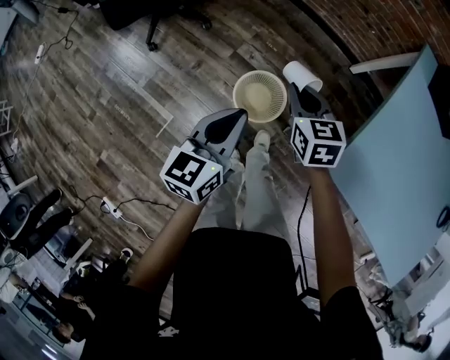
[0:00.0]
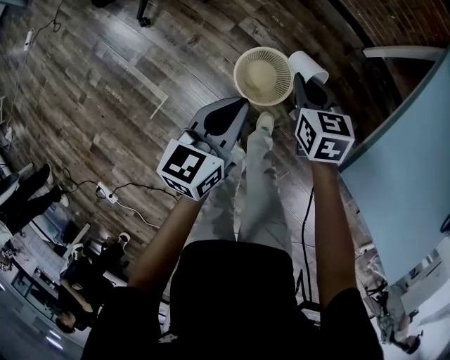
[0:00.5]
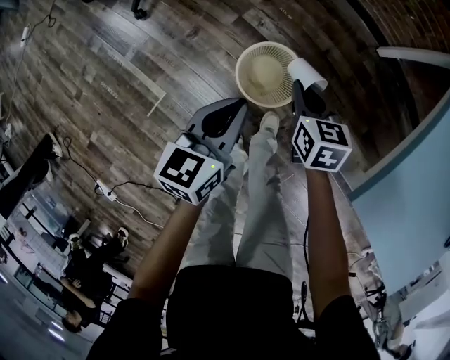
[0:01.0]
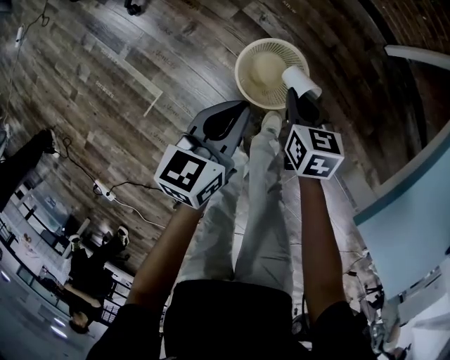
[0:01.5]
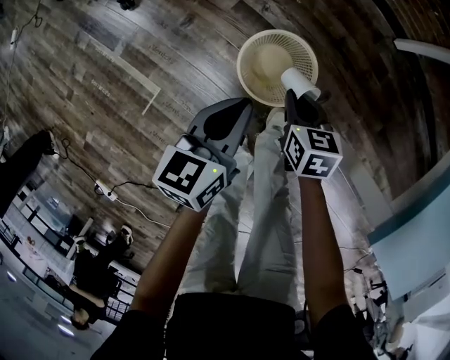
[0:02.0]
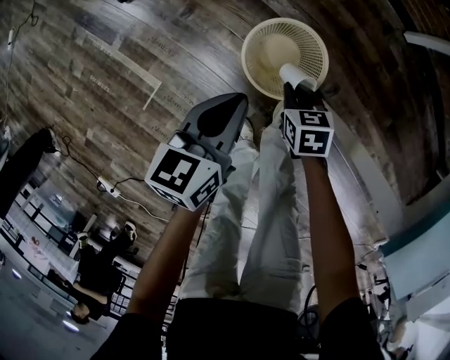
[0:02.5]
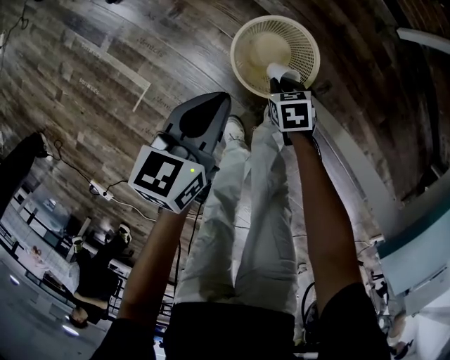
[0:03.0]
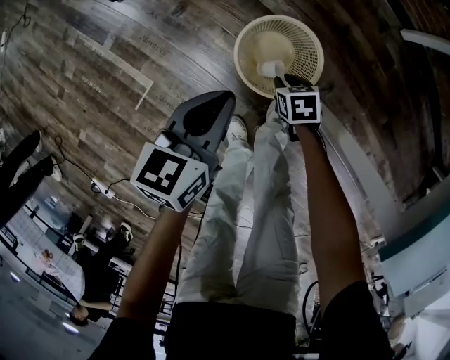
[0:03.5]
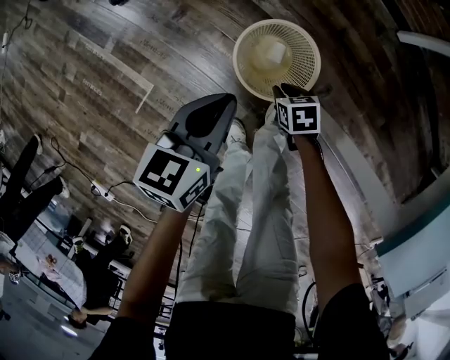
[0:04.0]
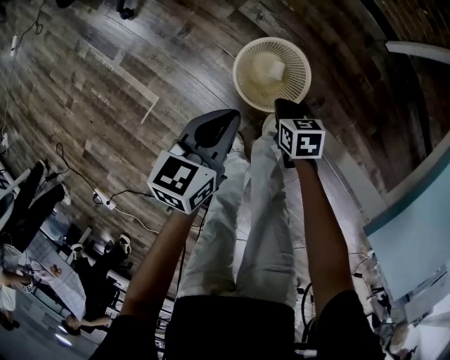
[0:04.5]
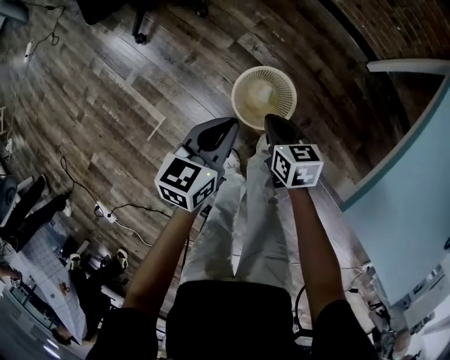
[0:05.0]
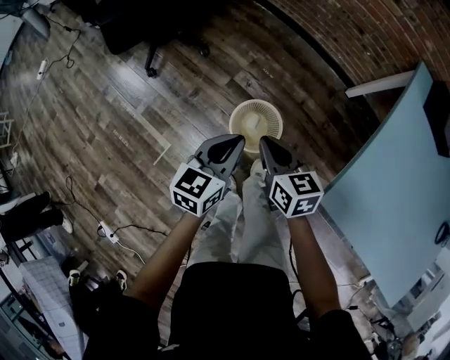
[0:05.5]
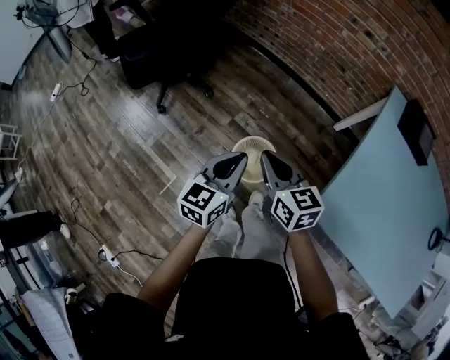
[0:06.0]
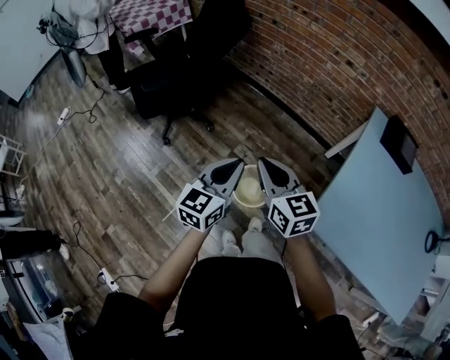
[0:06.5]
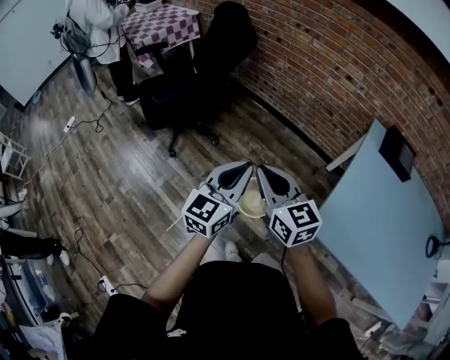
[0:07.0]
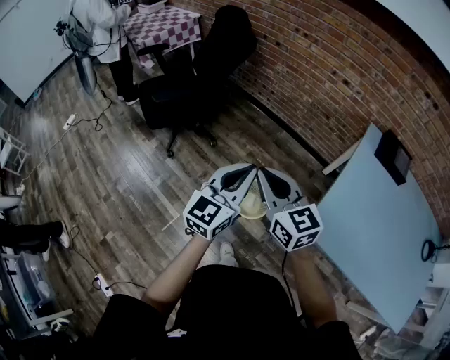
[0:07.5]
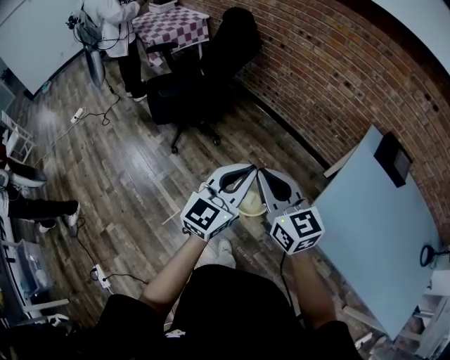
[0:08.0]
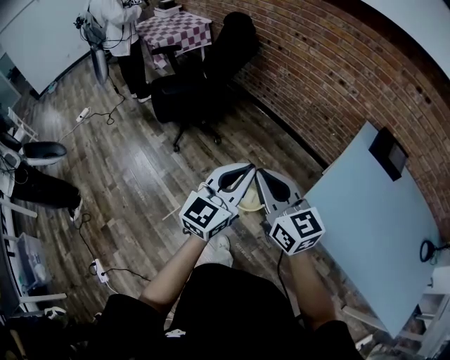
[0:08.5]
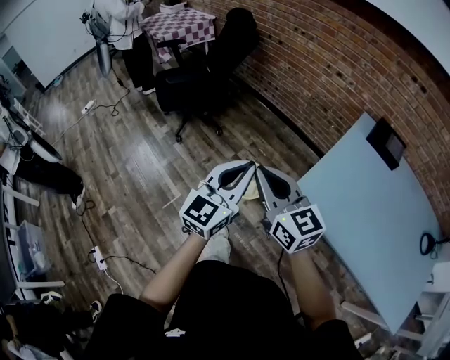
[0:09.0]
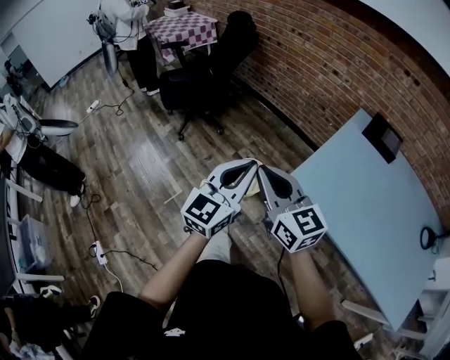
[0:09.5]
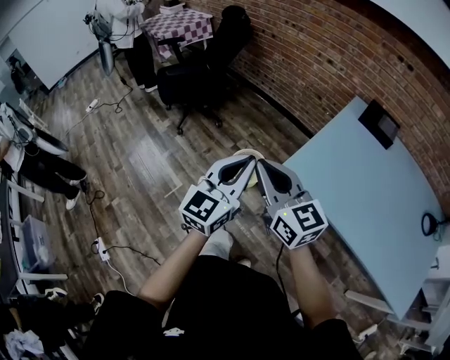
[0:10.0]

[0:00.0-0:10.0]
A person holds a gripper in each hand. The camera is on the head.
0:00.0 to 0:02.0: The two grippers go roughly 30 cm downward.
0:02.0 to 0:04.0: The right gripper heads downward, covering approximately 15 cm, and rotates roughly 20 degrees.
0:04.0 to 0:06.0: The right gripper heads upward, covering roughly 60 cm, and angles its fingers upward, by about 40 degrees. The left gripper heads upward, covering some 35 cm, and turns by about 20 degrees.
0:06.0 to 0:08.0: Both grippers travel together upward and backward, some 25 cm. The right gripper rotates roughly 20 degrees, while the left gripper rotates some 30 degrees.
0:08.0 to 0:10.0: The two grippers go about 25 cm backward.

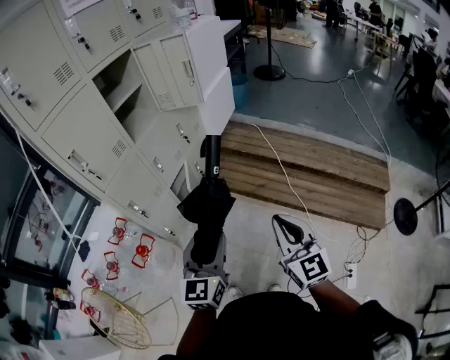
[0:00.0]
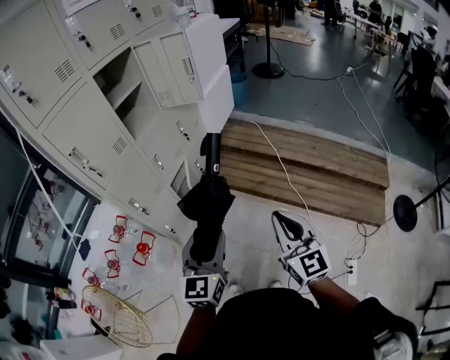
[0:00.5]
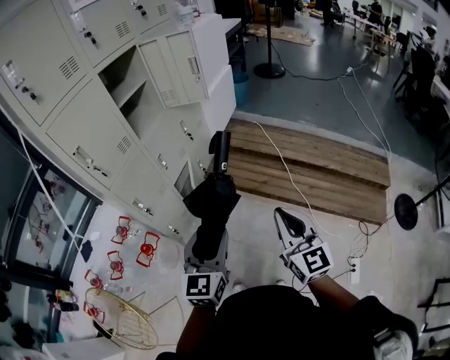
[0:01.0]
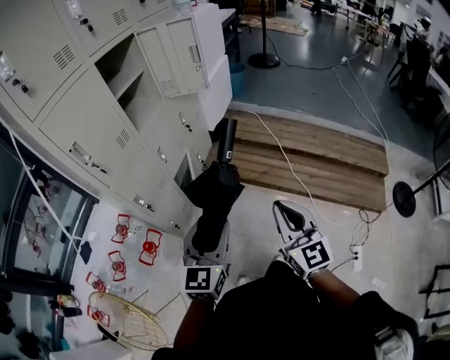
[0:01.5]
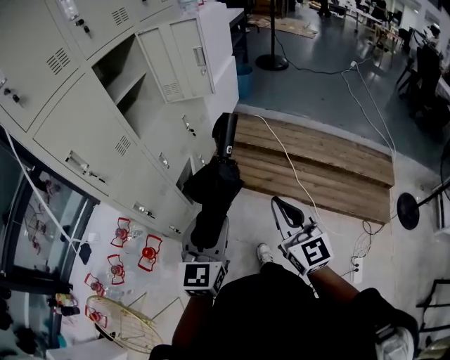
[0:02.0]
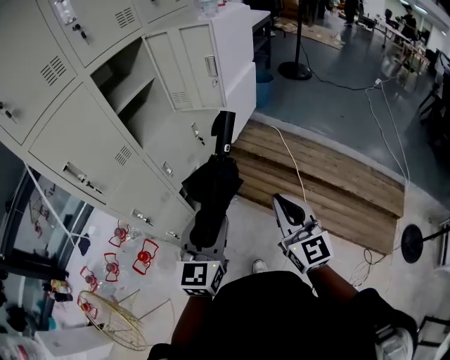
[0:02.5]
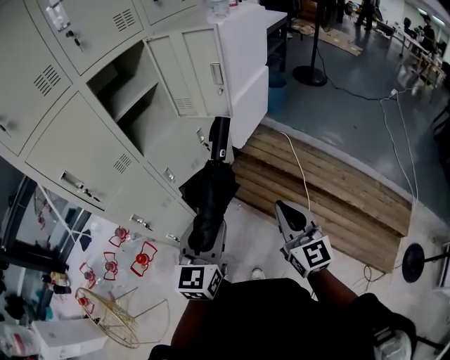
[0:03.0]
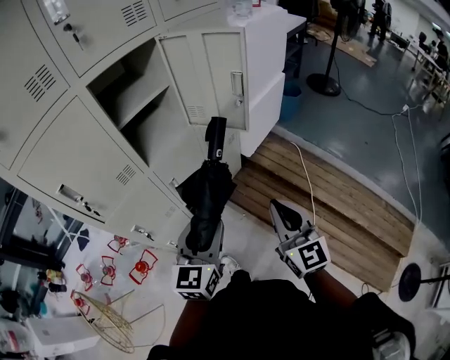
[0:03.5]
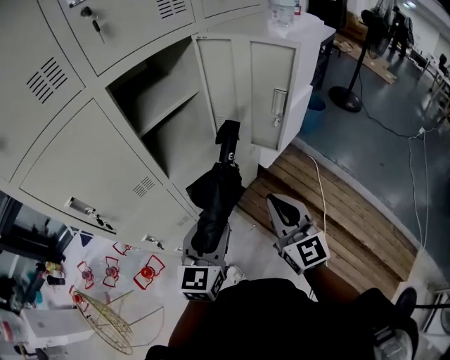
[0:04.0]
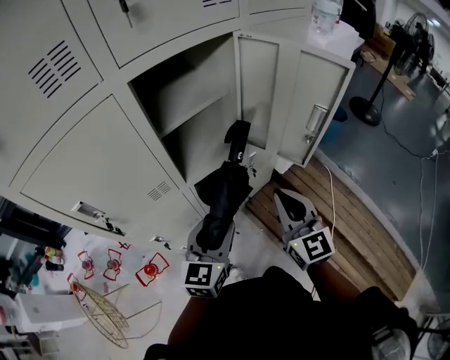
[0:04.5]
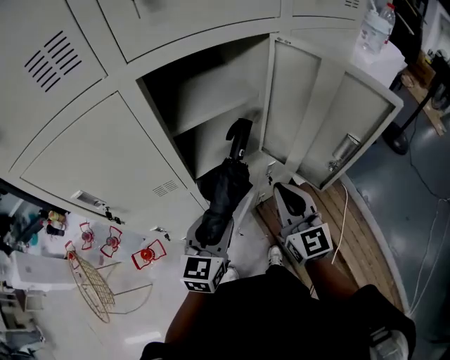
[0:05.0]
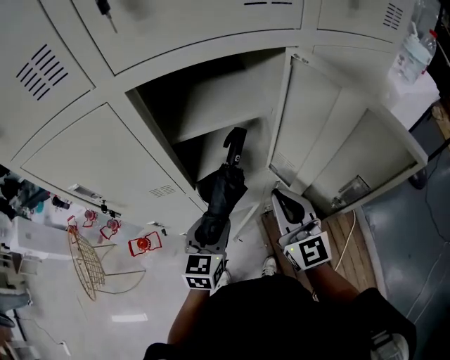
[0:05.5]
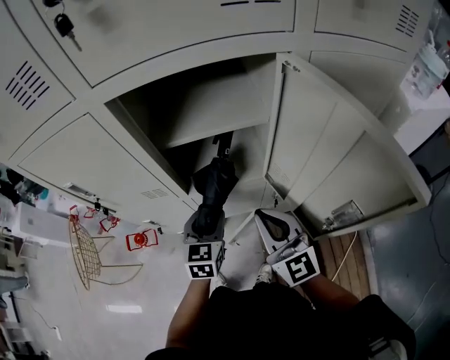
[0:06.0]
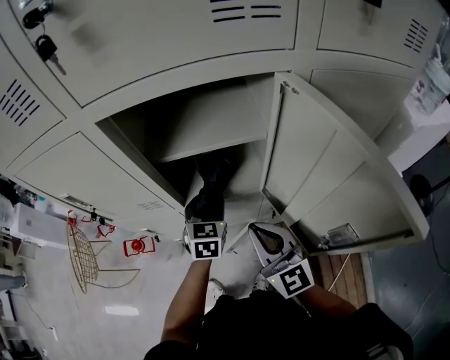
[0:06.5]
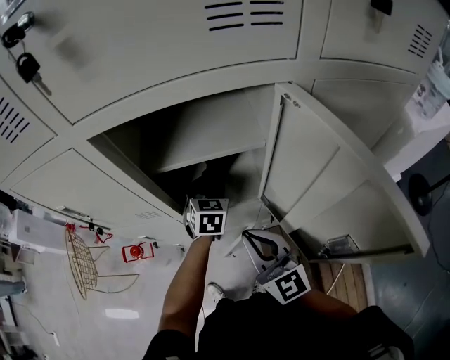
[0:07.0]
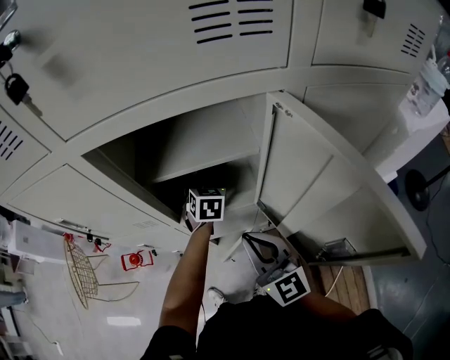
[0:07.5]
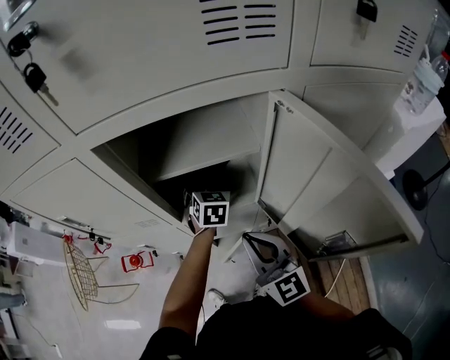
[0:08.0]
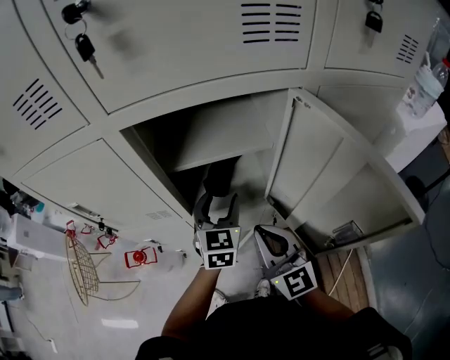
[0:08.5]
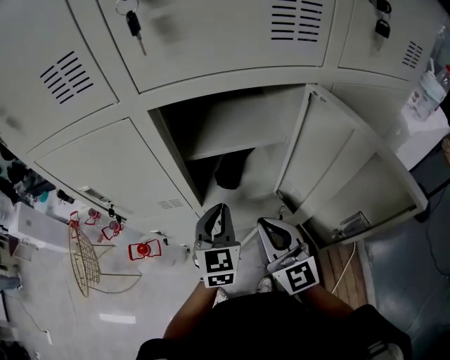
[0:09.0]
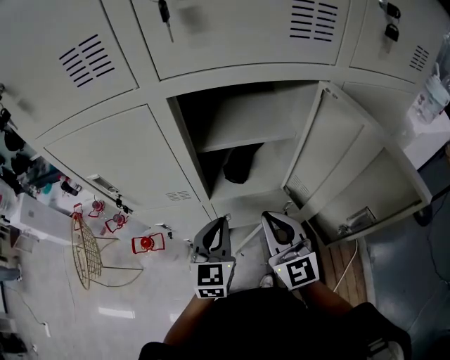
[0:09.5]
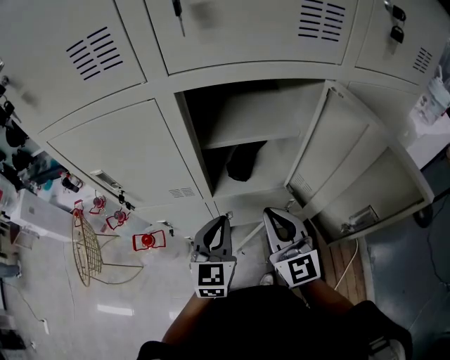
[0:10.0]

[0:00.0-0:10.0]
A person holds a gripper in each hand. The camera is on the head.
0:00.0 to 0:02.0: Both grippers travel together forward and to the left, some 10 cm.
0:02.0 to 0:04.0: Both grippers travel together forward, roughly 35 cm. The left gripper changes its angle by roughly 20 degrees; the right gripper changes its angle by approximately 20 degrees.
0:04.0 to 0:06.0: The right gripper shifts by about 20 cm, and swivels some 40 degrees; the left gripper ends up roughly 25 cm from where it was, and changes its angle by some 40 degrees.
0:06.0 to 0:08.0: The left gripper moves forward and to the right, roughly 20 cm, and opens up.
0:08.0 to 0:10.0: The left gripper is displaced backward and to the left by some 25 cm, turns by about 20 degrees, and closes up.

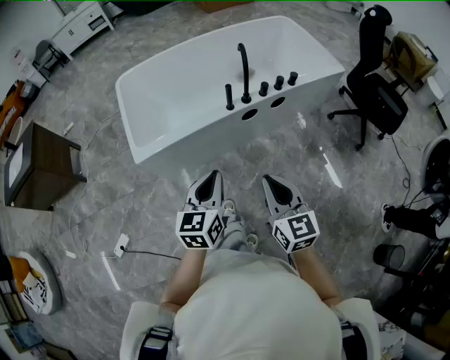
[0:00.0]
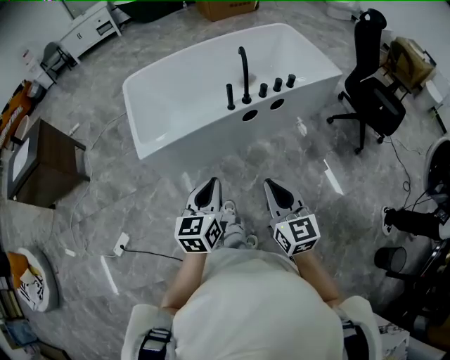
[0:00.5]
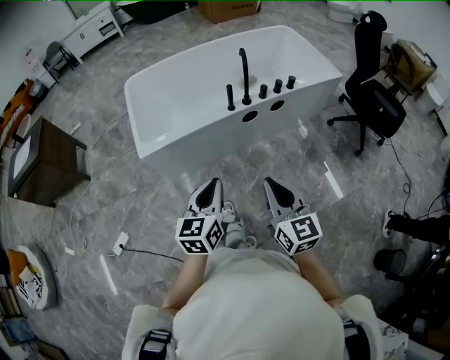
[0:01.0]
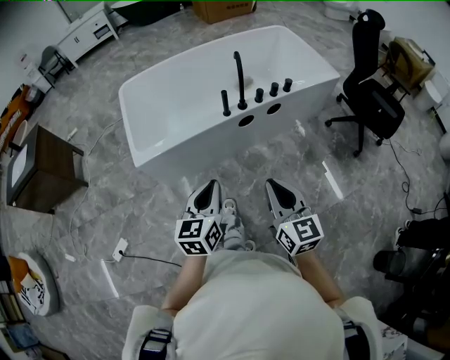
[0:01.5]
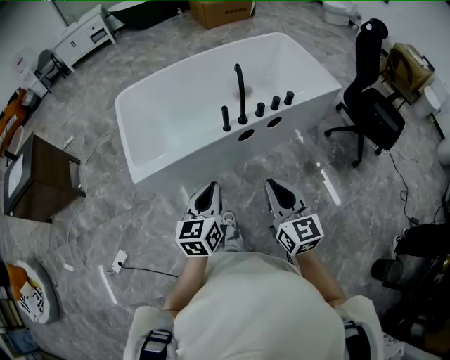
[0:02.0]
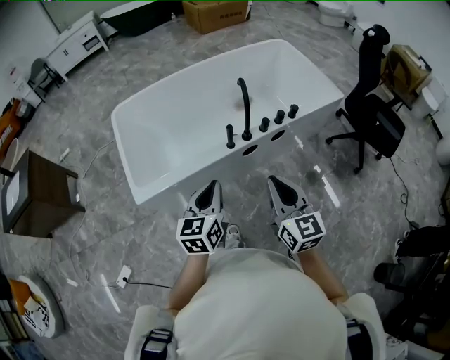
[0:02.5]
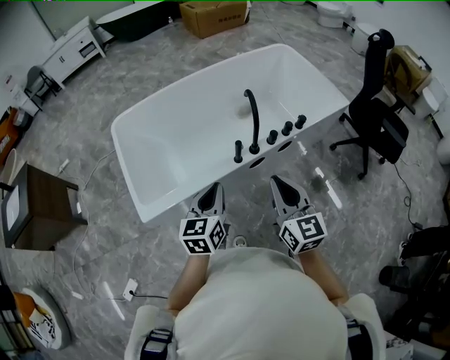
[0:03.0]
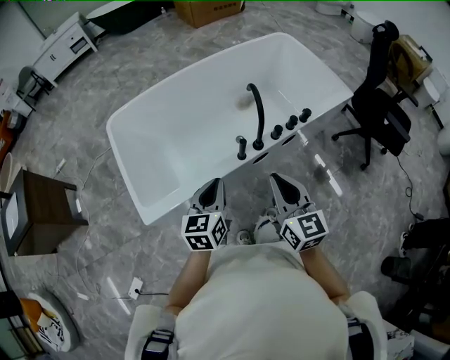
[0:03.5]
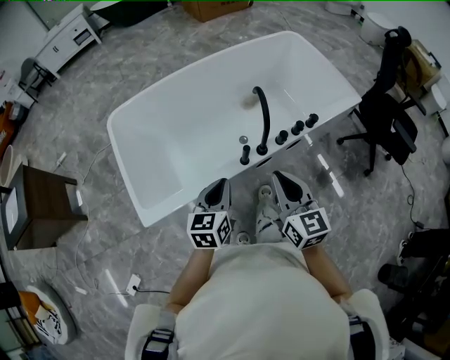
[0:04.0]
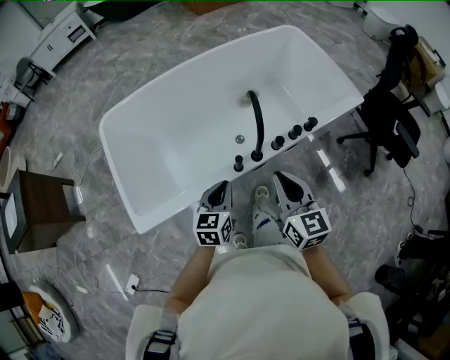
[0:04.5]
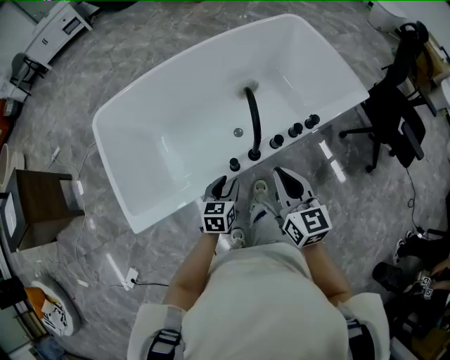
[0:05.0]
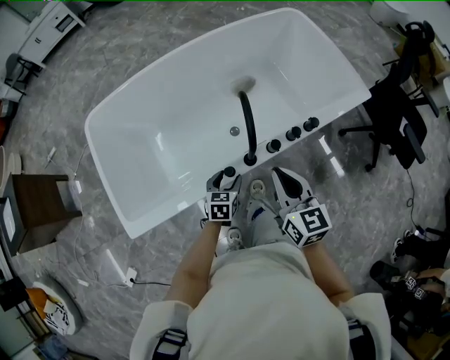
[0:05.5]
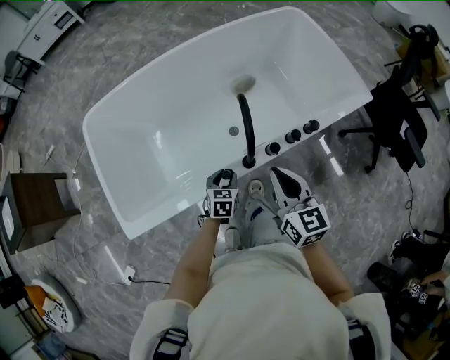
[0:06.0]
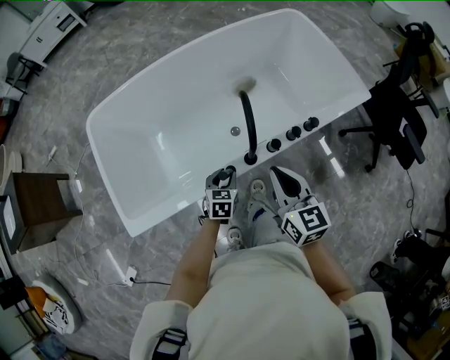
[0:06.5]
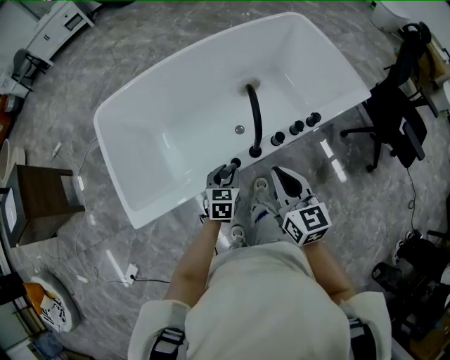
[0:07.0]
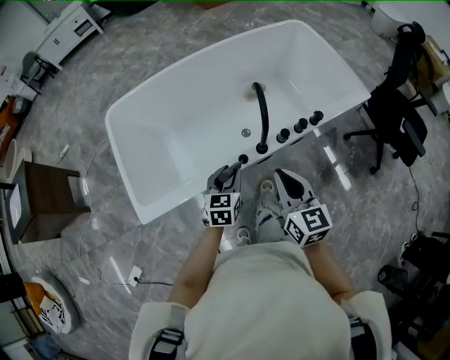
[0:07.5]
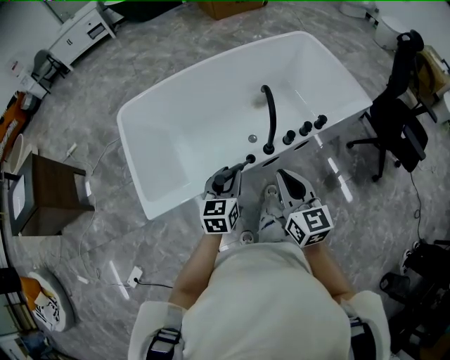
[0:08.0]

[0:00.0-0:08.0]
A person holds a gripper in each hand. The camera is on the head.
0:00.0 to 0:02.0: The left gripper goes backward and returns, some 10 cm each way. The right gripper ends up some 5 cm from where it was.
0:02.0 to 0:04.0: Both grippers travel together forward, roughly 25 cm.
0:04.0 to 0:06.0: The left gripper travels downward and forward by some 30 cm, changes its angle by approximately 30 degrees, and opens its fingers, while the right gripper goes roughly 20 cm forward, downward and to the right.
0:06.0 to 0:08.0: The right gripper shifts approximately 15 cm backward, to the left and upward; the left gripper is displaced upward and backward by about 25 cm, and swivels about 30 degrees.
